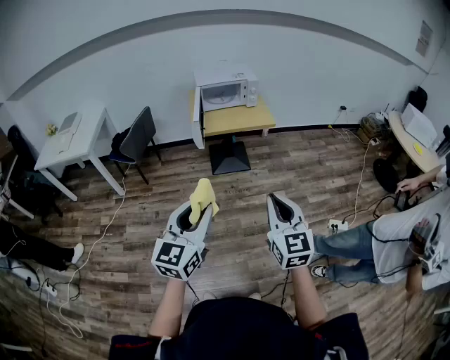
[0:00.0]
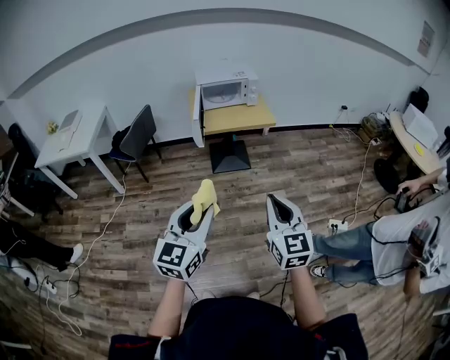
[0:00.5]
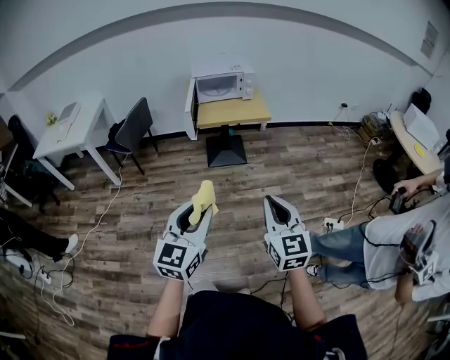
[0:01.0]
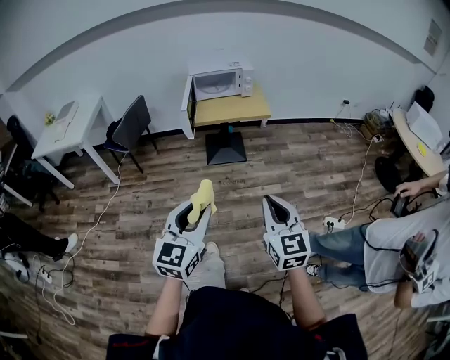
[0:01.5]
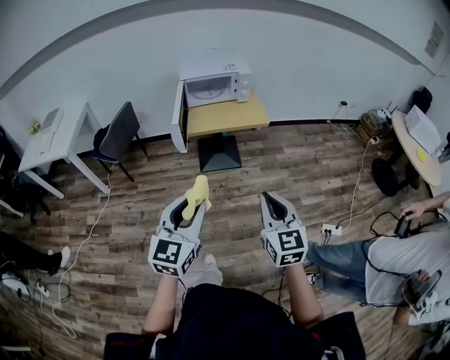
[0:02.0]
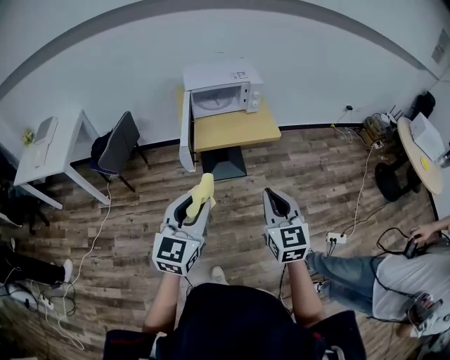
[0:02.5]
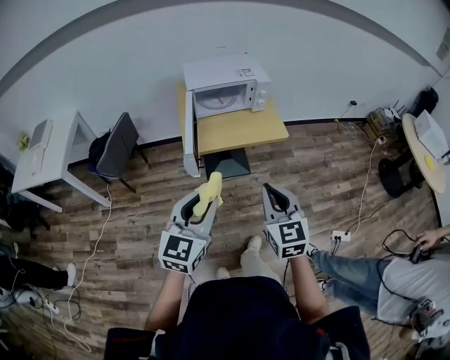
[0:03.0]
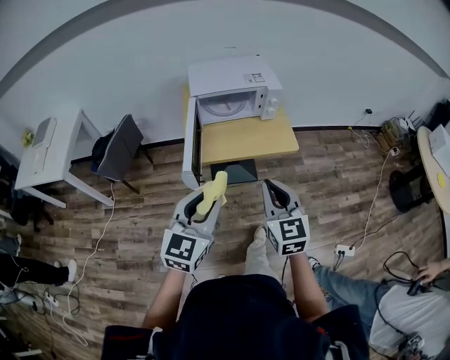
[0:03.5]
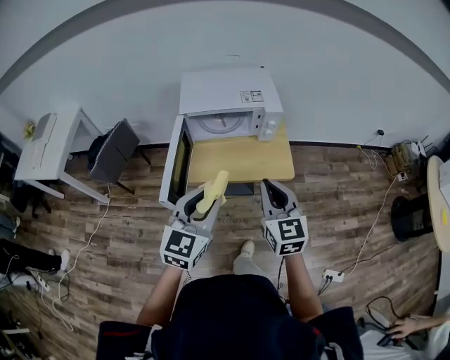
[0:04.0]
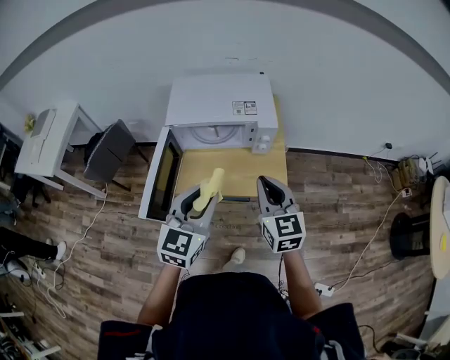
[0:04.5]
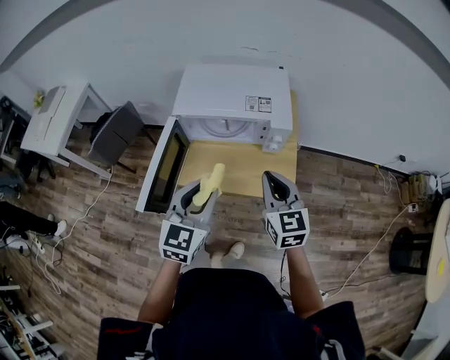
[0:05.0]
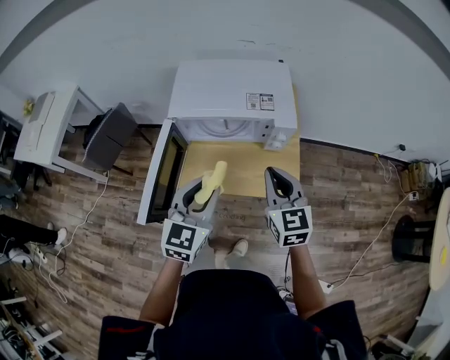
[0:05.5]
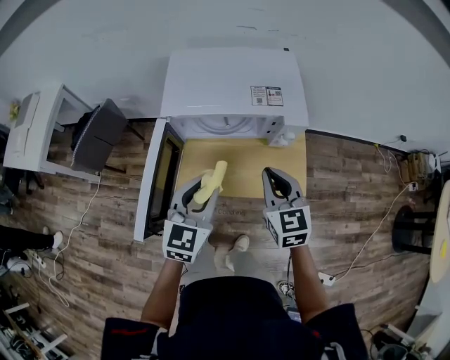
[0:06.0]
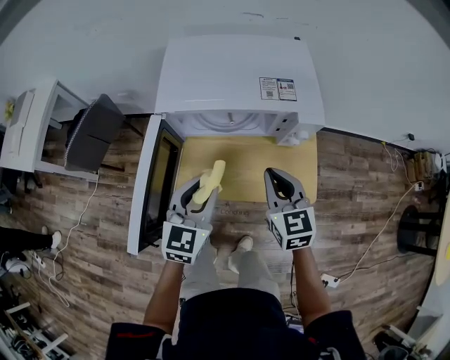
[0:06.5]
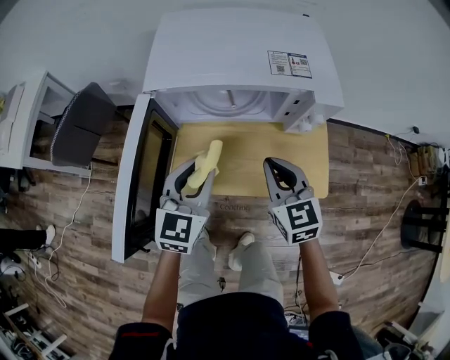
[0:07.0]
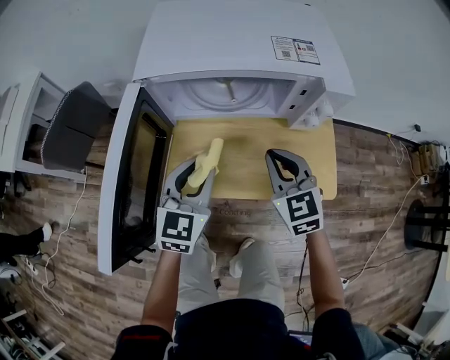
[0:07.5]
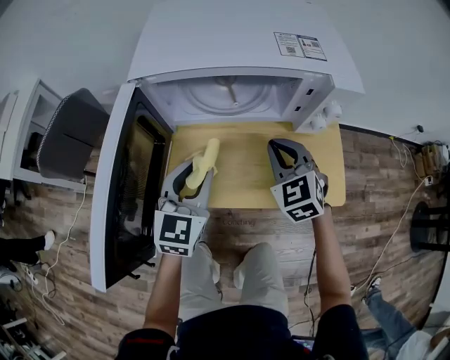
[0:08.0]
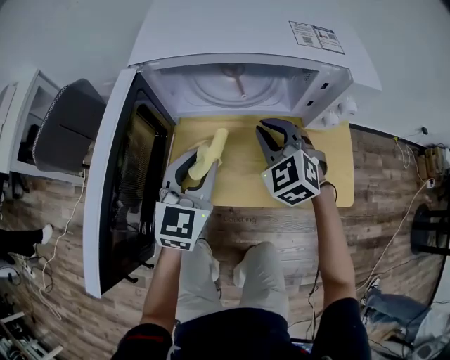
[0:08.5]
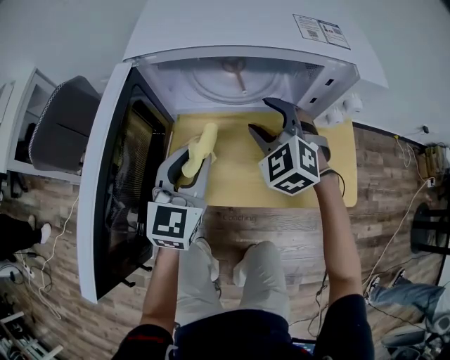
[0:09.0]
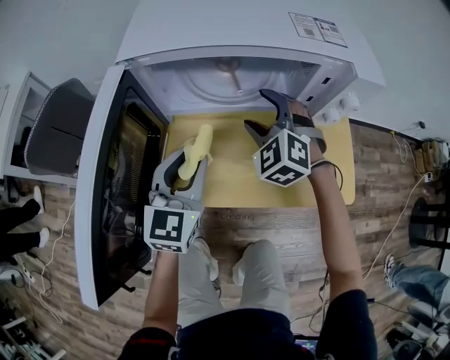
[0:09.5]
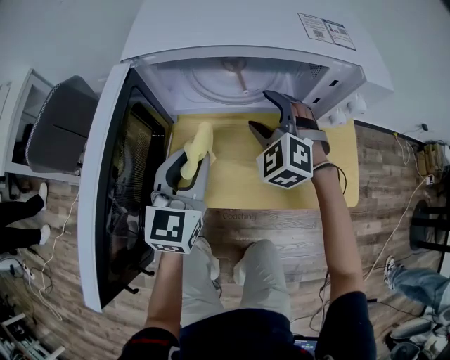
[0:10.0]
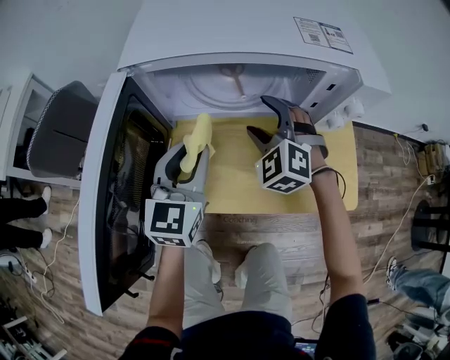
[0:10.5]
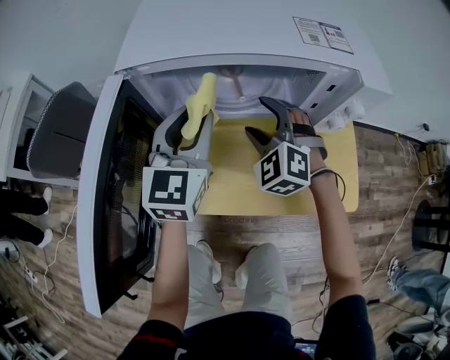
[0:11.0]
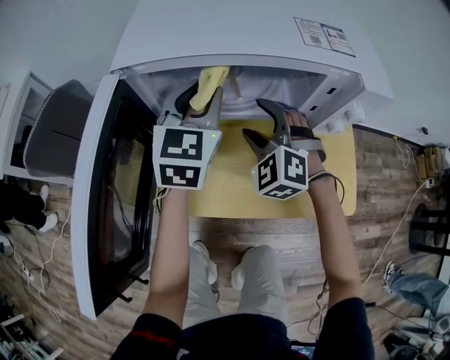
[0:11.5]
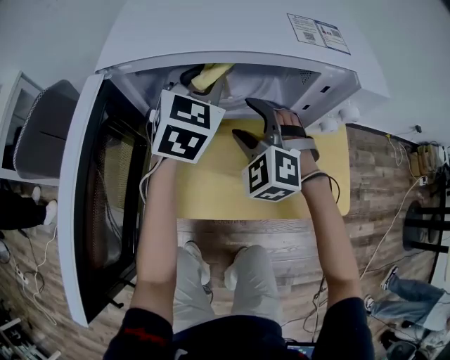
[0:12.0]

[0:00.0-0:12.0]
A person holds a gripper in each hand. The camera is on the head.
0:00.0 to 0:02.0: The two grippers go some 15 cm forward.
0:02.0 to 0:04.0: Both grippers are carried forward, some 50 cm.
0:04.0 to 0:06.0: Both grippers travel together forward and downward, about 25 cm.
0:06.0 to 0:08.0: The right gripper moves downward and forward, about 20 cm, and swivels roughly 30 degrees. The left gripper shifts some 20 cm downward.
0:08.0 to 0:10.0: The right gripper heads forward and to the left, covering about 10 cm, rotates about 30 degrees, and opens up.
0:10.0 to 0:12.0: The left gripper moves forward, about 15 cm, and turns by about 20 degrees.

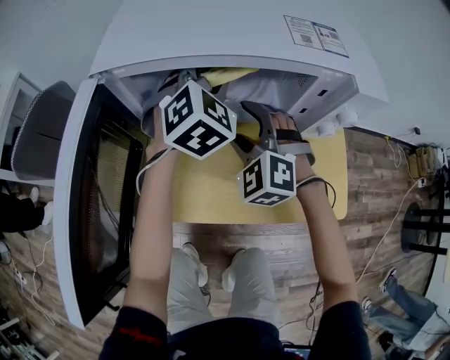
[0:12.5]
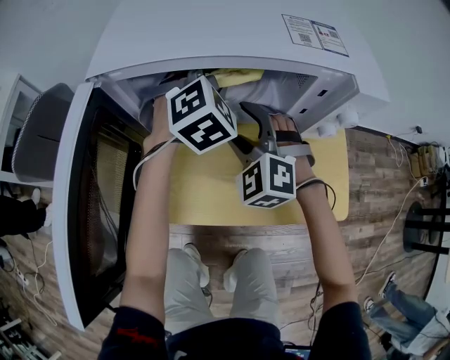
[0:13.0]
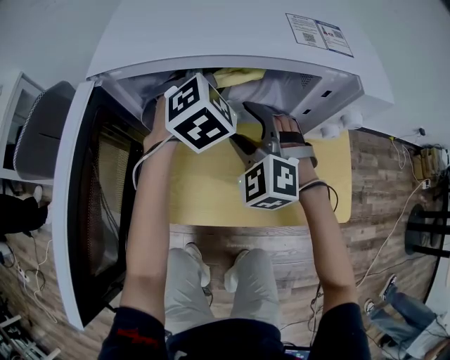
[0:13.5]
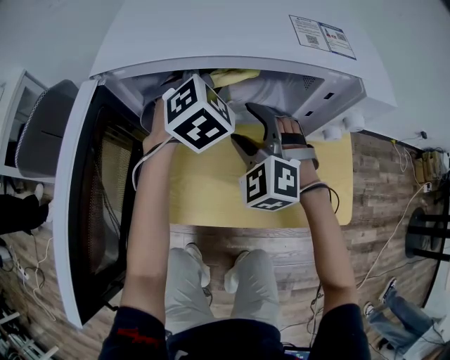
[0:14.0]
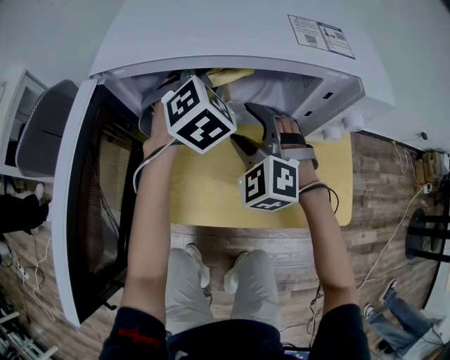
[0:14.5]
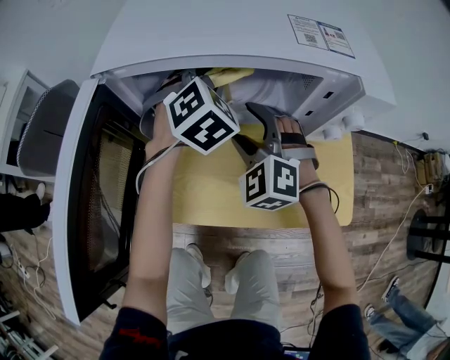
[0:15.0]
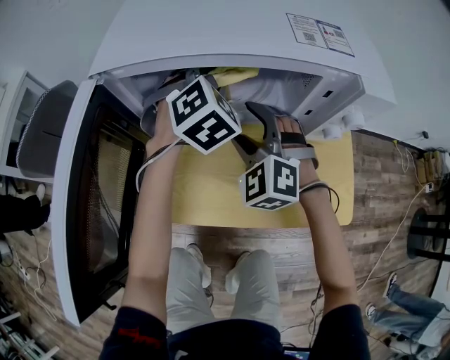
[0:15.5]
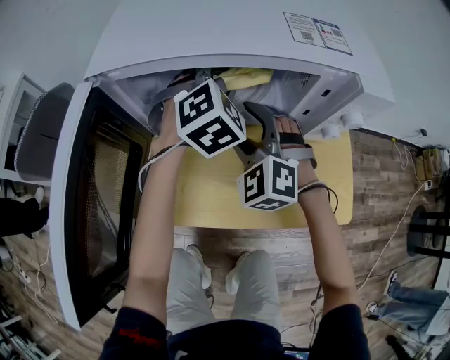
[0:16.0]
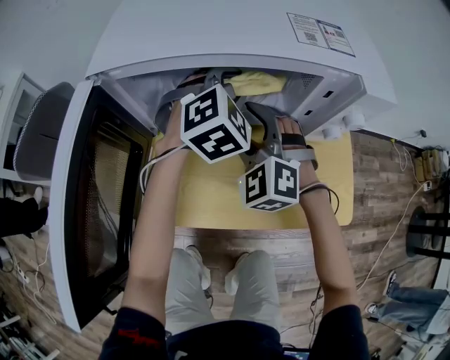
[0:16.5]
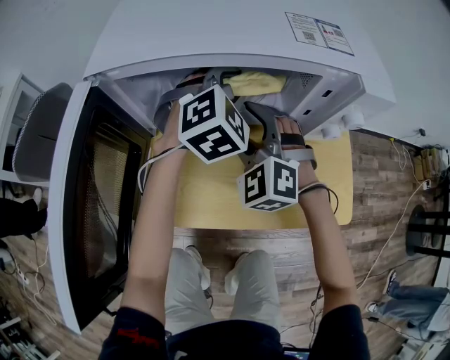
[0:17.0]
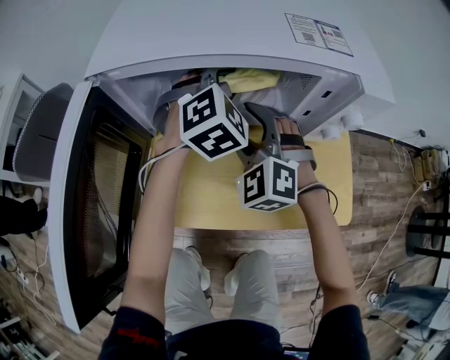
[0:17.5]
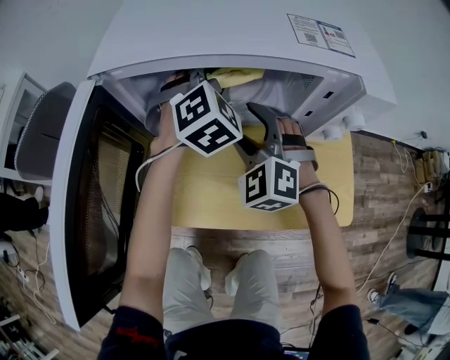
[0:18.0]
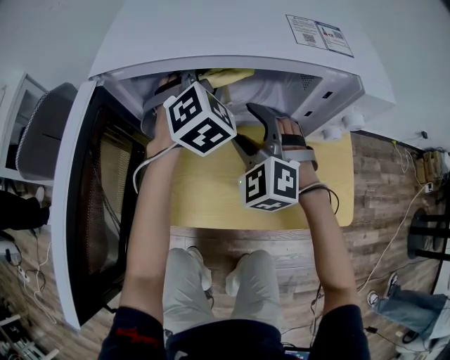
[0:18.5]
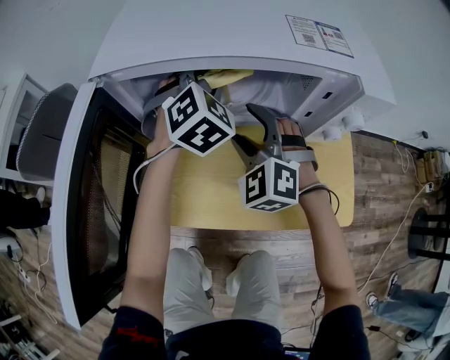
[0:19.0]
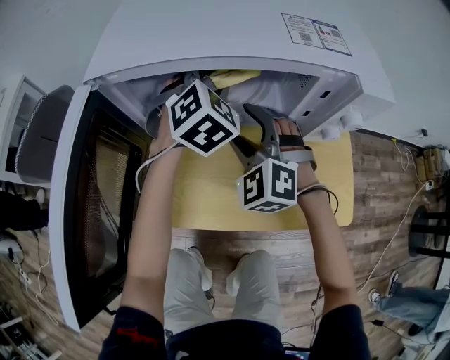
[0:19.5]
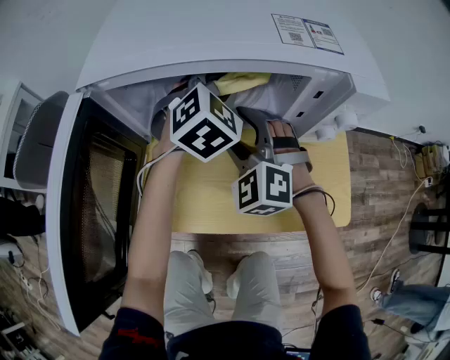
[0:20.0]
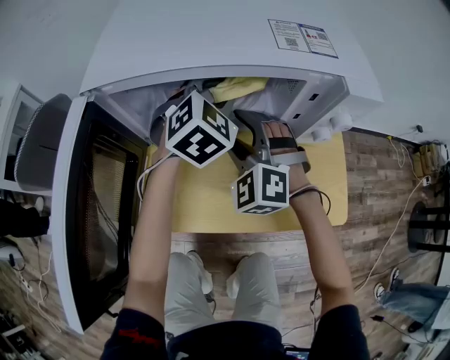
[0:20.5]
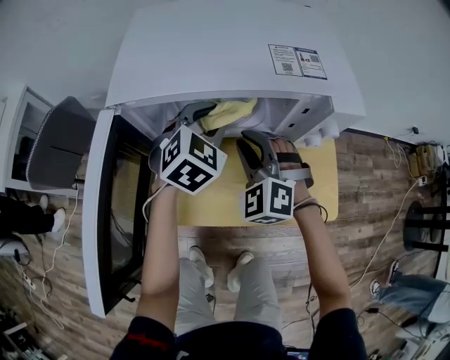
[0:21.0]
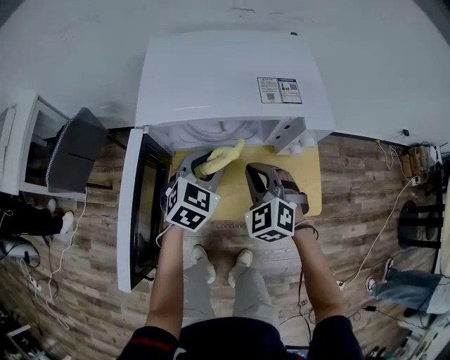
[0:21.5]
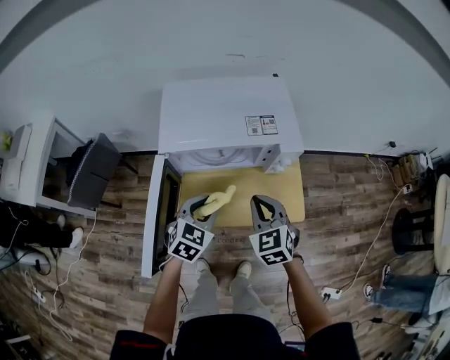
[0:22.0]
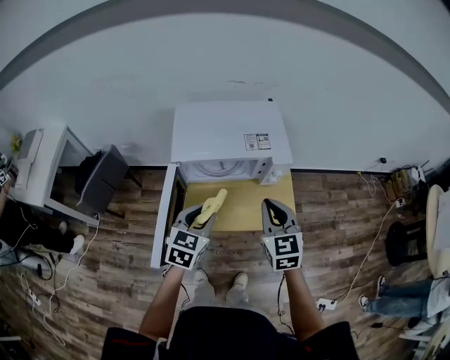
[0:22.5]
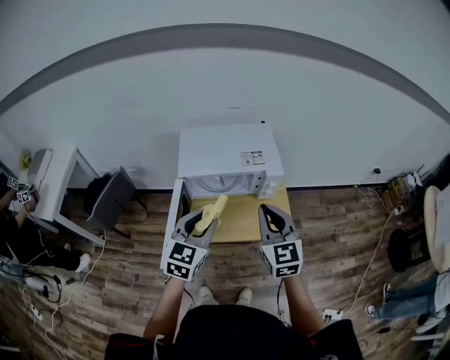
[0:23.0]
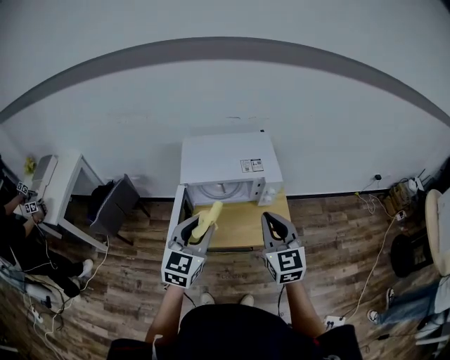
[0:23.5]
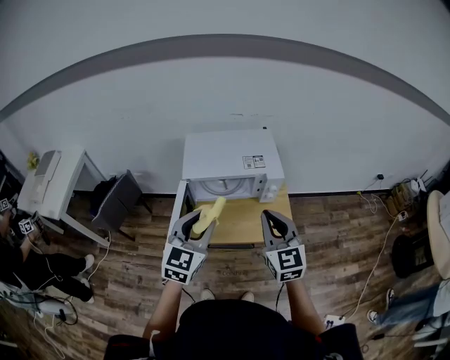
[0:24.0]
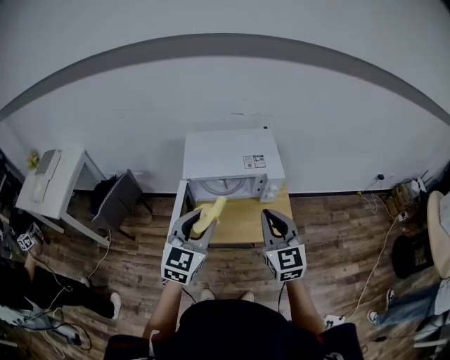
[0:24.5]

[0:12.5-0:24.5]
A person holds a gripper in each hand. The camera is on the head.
0:12.5 to 0:14.5: There are only small adjustments of the grippers.
0:14.5 to 0:16.5: The left gripper is displaced to the right by approximately 5 cm.
0:16.5 to 0:18.5: The left gripper travels to the left by approximately 5 cm.
0:18.5 to 0:20.5: The left gripper shifts about 5 cm to the right.
0:20.5 to 0:22.5: The right gripper travels upward and backward by some 35 cm, rotates around the line of its fingers by roughly 50 degrees, clockwise from behind, and closes its fingers. Meanwhile the left gripper goes some 35 cm backward and upward, and swivels roughly 30 degrees.
0:22.5 to 0:24.5: Both grippers travel together upward and backward, about 15 cm. The left gripper turns by approximately 20 degrees.

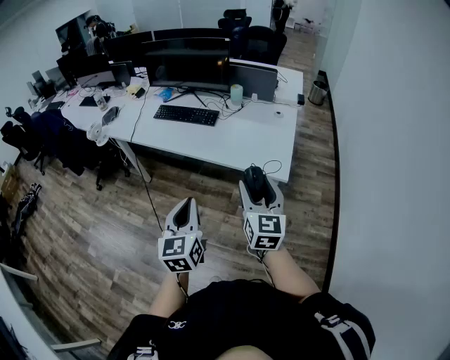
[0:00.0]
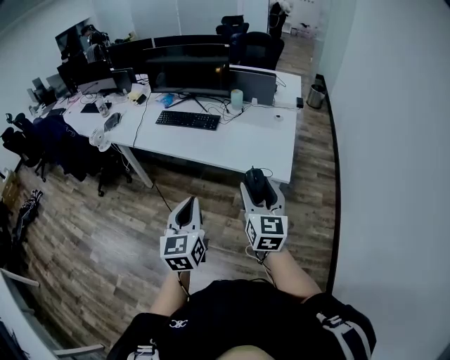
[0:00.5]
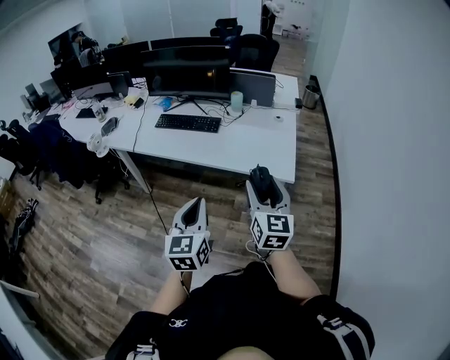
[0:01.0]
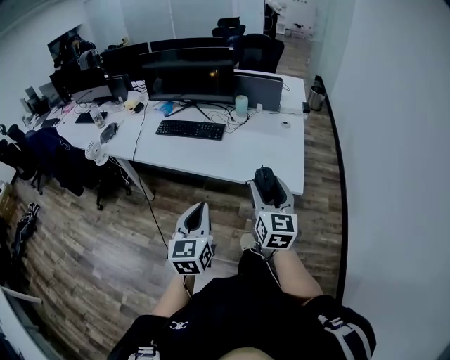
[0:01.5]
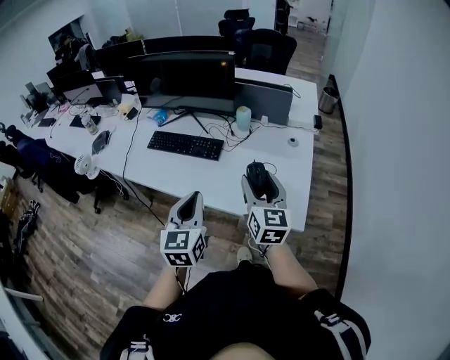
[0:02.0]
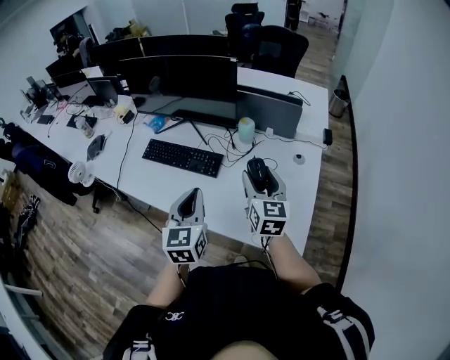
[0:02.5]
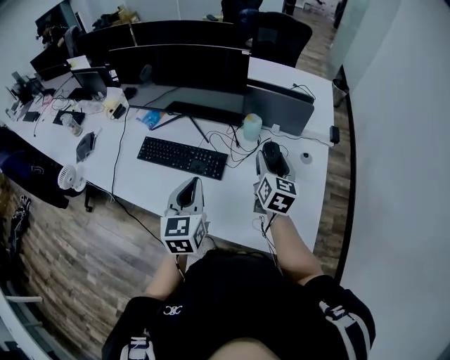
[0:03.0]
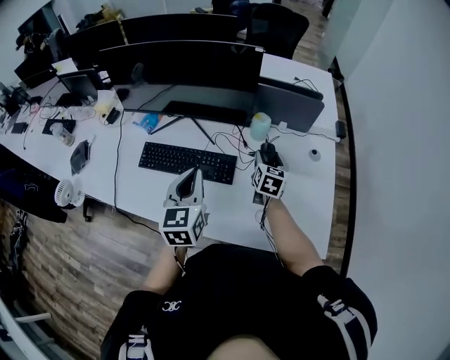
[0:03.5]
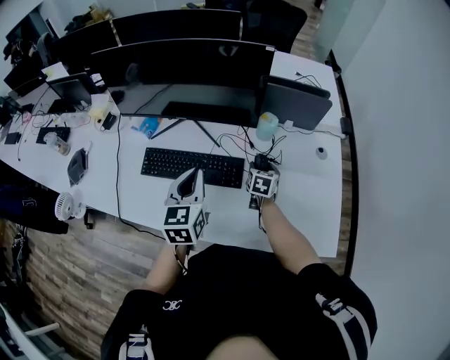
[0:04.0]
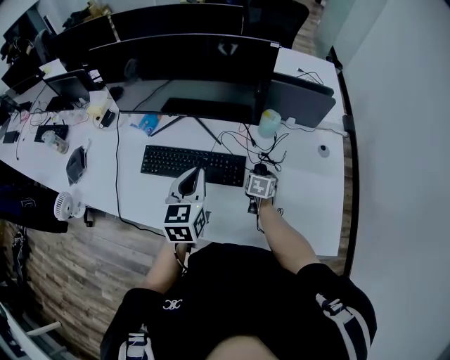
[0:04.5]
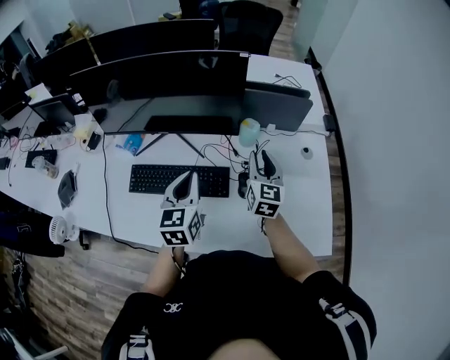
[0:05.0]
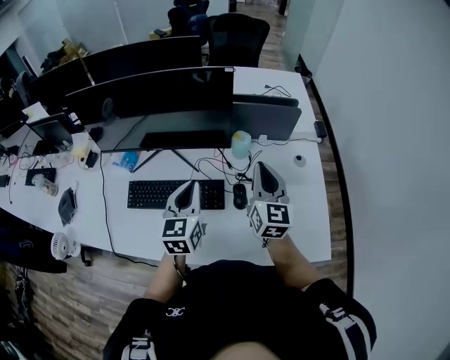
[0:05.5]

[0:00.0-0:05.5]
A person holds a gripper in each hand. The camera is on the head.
0:00.0 to 0:02.0: The two grippers go some 30 cm forward.
0:02.0 to 0:03.5: The left gripper moves forward, roughly 35 cm, while the right gripper shifts about 40 cm forward and downward, and turns by roughly 30 degrees.
0:03.5 to 0:05.5: The right gripper shifts approximately 15 cm upward, rotates about 20 degrees, and closes its fingers, while the left gripper goes about 10 cm forward.
